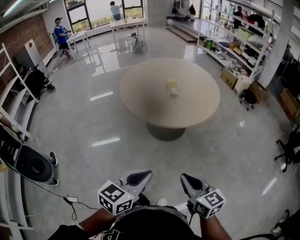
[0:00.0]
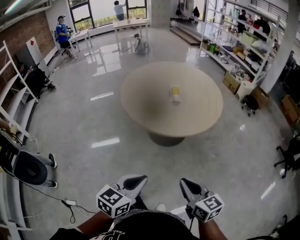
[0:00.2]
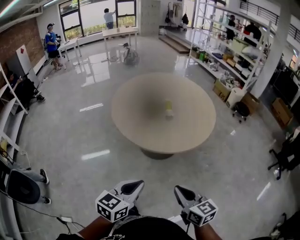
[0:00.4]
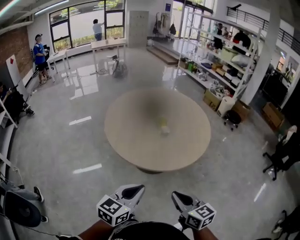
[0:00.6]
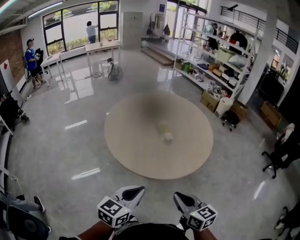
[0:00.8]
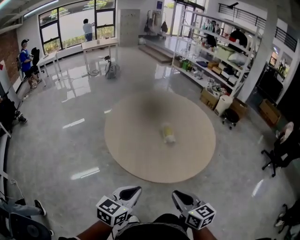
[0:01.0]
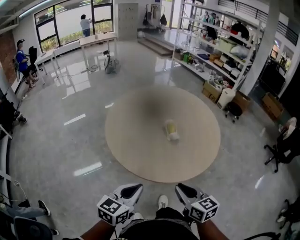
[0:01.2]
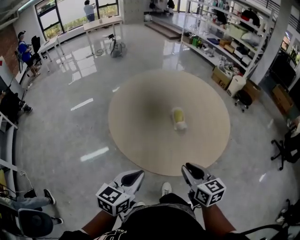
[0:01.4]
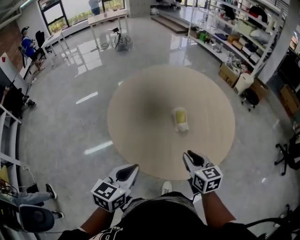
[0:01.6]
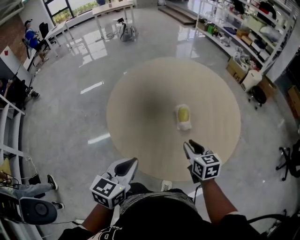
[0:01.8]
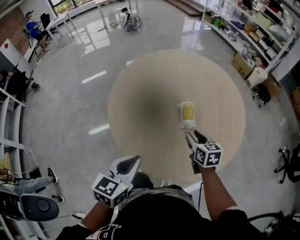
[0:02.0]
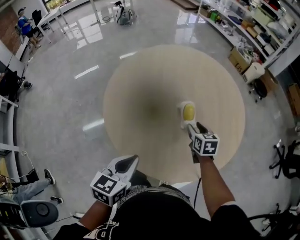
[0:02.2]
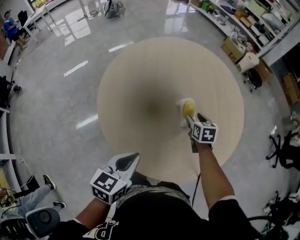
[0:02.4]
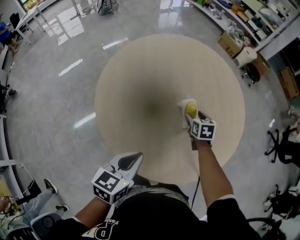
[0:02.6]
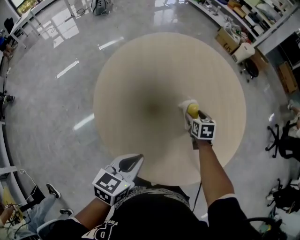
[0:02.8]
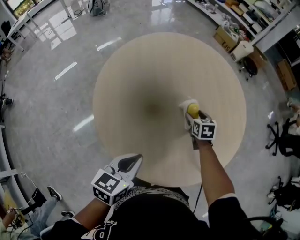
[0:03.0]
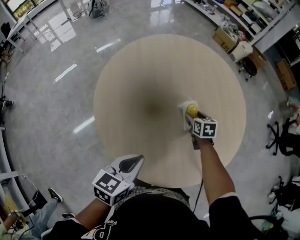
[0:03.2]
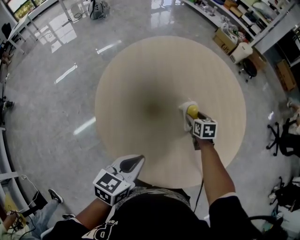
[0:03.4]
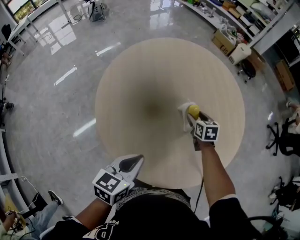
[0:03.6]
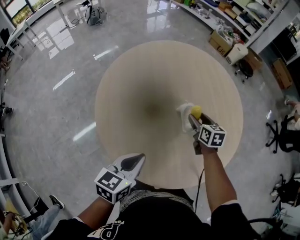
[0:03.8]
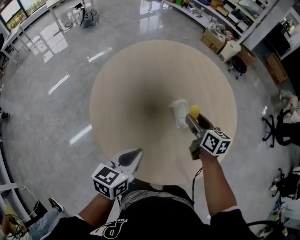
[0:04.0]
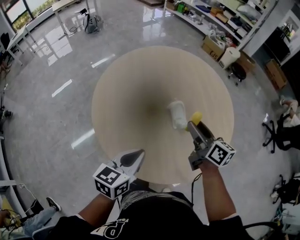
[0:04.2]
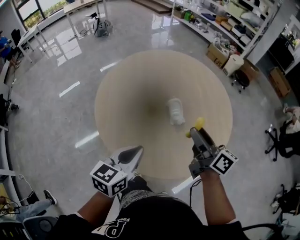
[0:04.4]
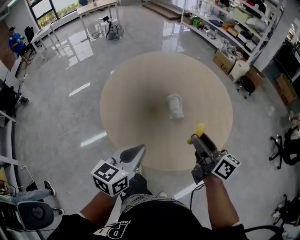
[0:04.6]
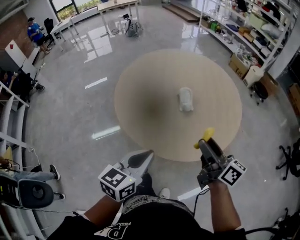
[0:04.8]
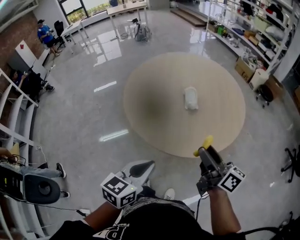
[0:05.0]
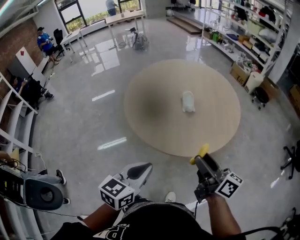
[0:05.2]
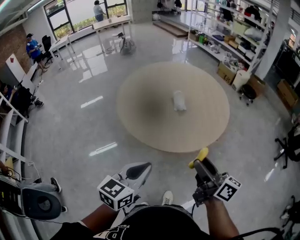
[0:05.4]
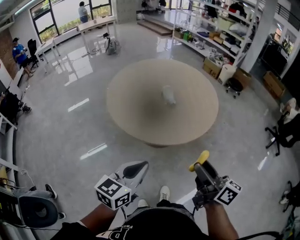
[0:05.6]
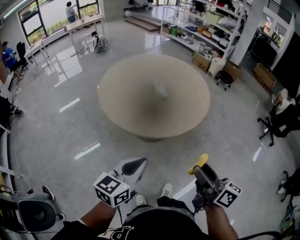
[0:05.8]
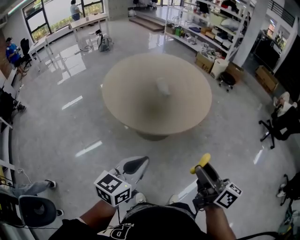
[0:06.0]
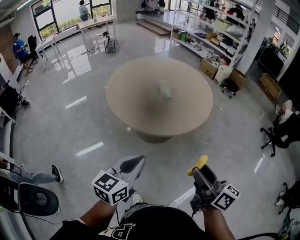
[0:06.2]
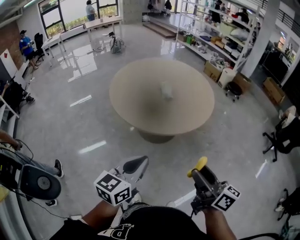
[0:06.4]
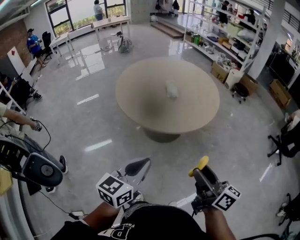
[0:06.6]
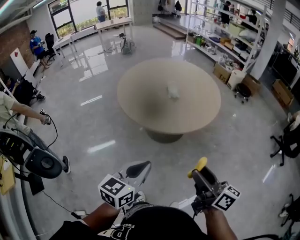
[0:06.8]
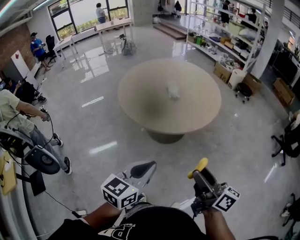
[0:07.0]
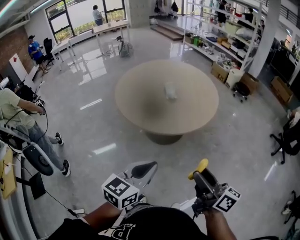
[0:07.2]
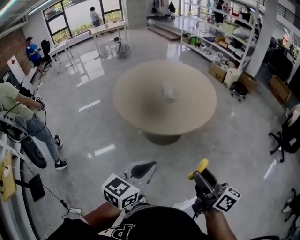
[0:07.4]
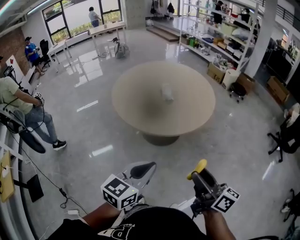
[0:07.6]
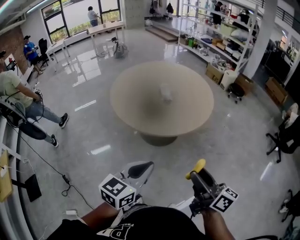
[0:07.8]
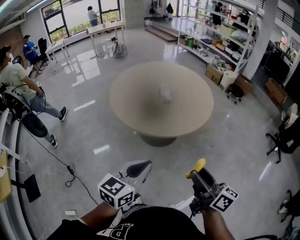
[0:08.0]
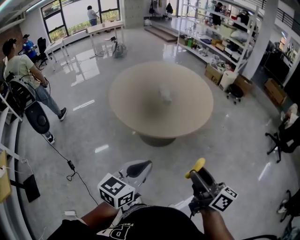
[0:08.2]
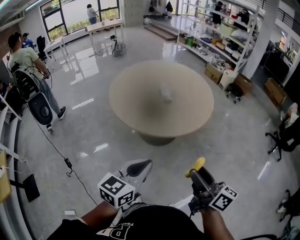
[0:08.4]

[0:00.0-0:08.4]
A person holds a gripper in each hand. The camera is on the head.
0:00.0 to 0:01.4: Both grippers are carried forward and to the left, about 50 cm.
0:01.4 to 0:02.8: The left gripper changes place by roughly 30 cm. The right gripper changes place by roughly 50 cm, changes its angle by about 30 degrees, and opens up.
0:02.8 to 0:04.2: The left gripper ends up approximately 5 cm from where it was; the right gripper shifts approximately 25 cm upward and backward, and tips its fingers upward by approximately 40 degrees.
0:04.2 to 0:05.6: The two grippers travel together, backward, some 50 cm. The right gripper changes its angle by some 20 degrees.
0:05.6 to 0:07.0: Both grippers travel together backward and to the right, some 15 cm.
0:07.0 to 0:08.4: The grippers move only a little.

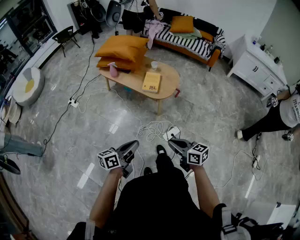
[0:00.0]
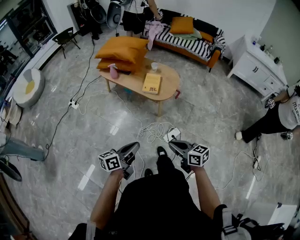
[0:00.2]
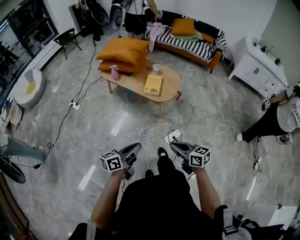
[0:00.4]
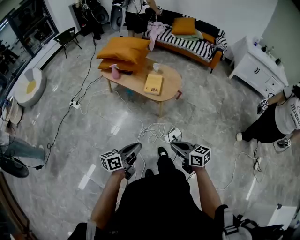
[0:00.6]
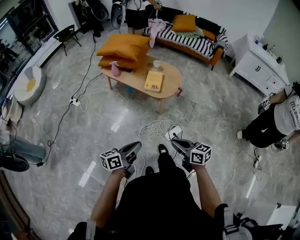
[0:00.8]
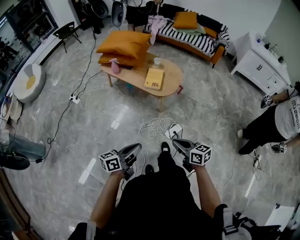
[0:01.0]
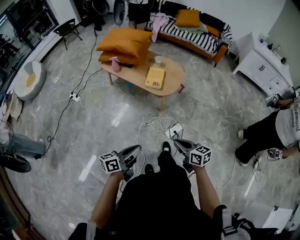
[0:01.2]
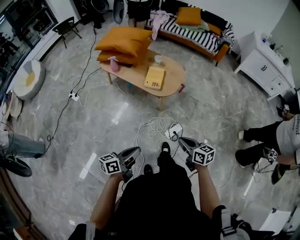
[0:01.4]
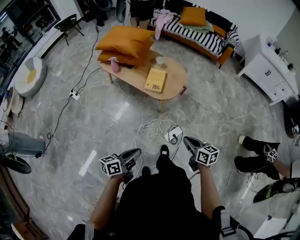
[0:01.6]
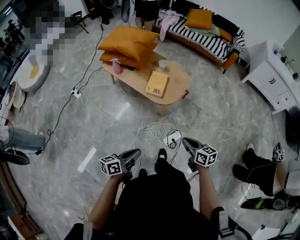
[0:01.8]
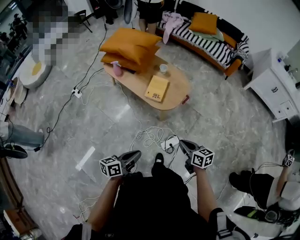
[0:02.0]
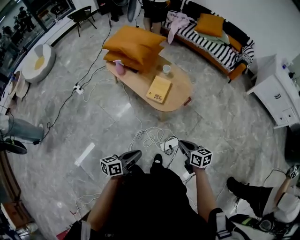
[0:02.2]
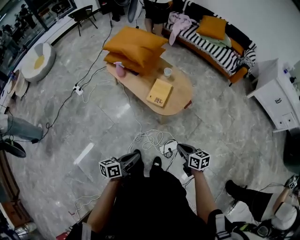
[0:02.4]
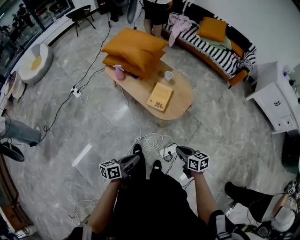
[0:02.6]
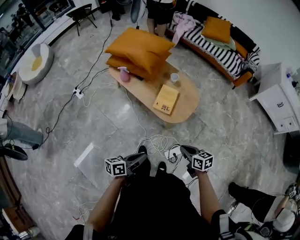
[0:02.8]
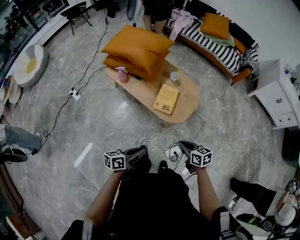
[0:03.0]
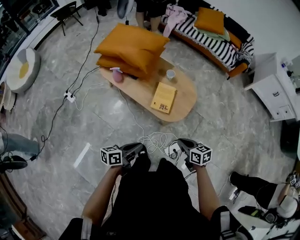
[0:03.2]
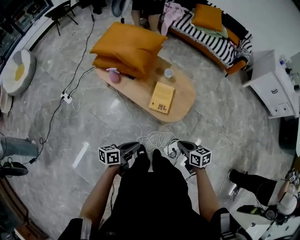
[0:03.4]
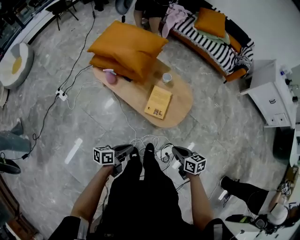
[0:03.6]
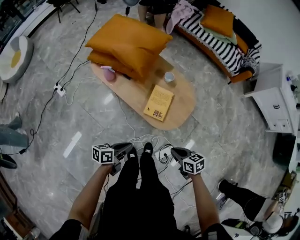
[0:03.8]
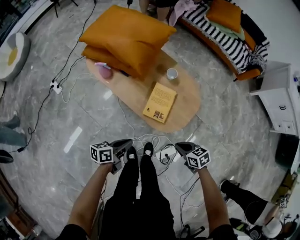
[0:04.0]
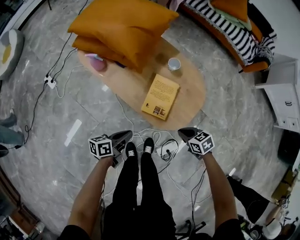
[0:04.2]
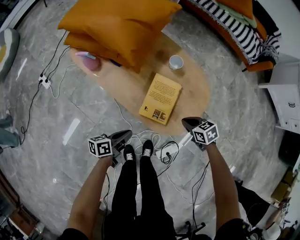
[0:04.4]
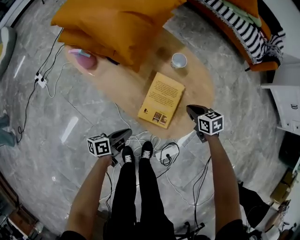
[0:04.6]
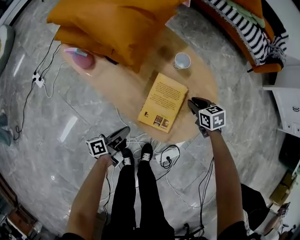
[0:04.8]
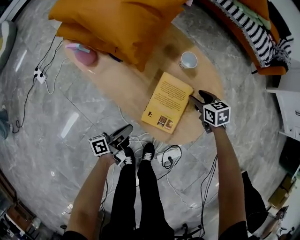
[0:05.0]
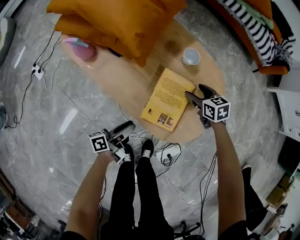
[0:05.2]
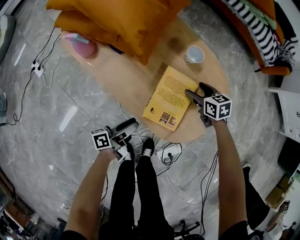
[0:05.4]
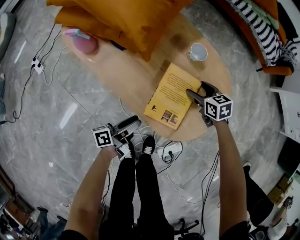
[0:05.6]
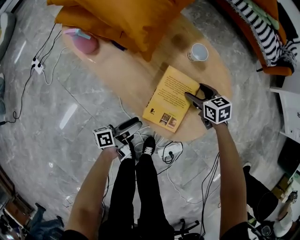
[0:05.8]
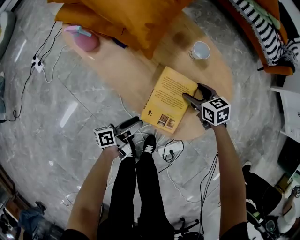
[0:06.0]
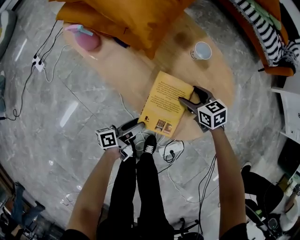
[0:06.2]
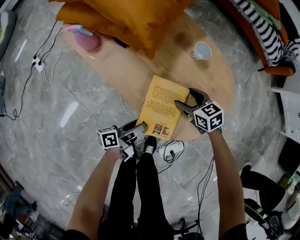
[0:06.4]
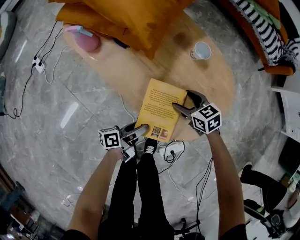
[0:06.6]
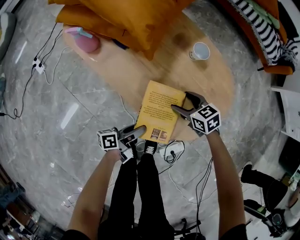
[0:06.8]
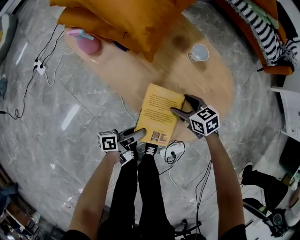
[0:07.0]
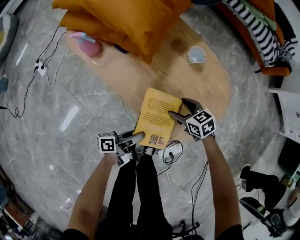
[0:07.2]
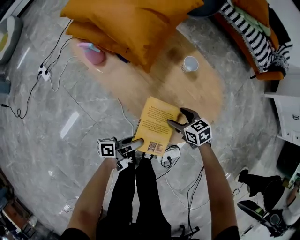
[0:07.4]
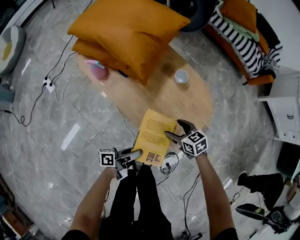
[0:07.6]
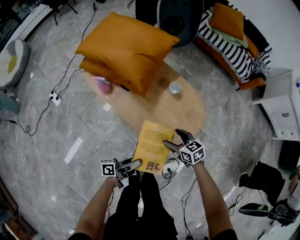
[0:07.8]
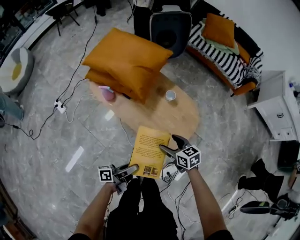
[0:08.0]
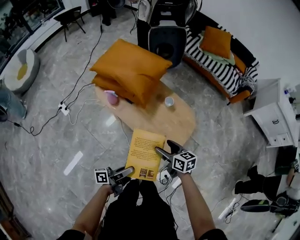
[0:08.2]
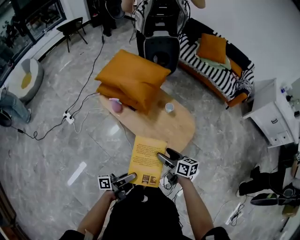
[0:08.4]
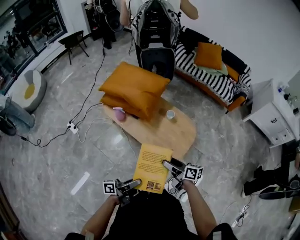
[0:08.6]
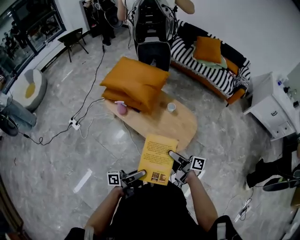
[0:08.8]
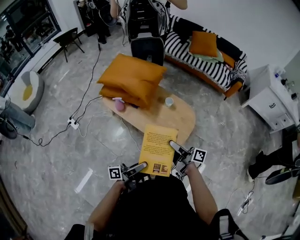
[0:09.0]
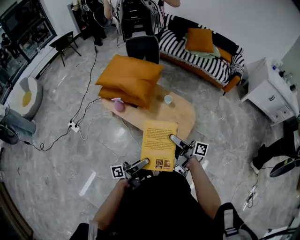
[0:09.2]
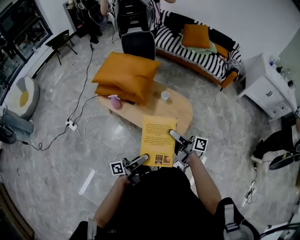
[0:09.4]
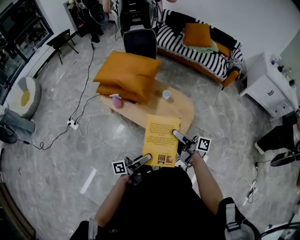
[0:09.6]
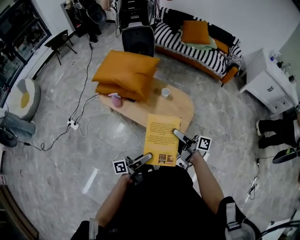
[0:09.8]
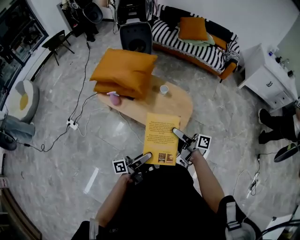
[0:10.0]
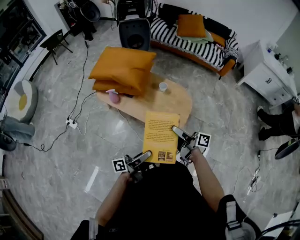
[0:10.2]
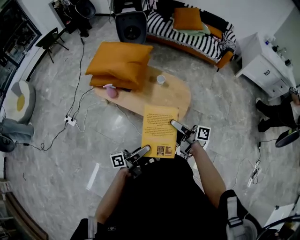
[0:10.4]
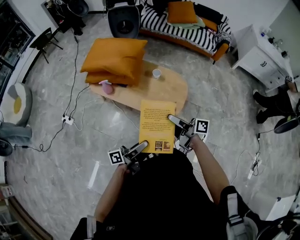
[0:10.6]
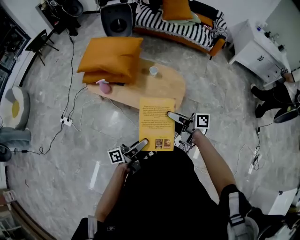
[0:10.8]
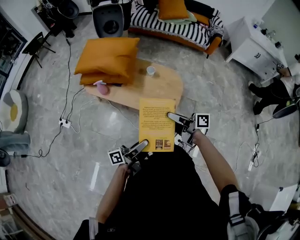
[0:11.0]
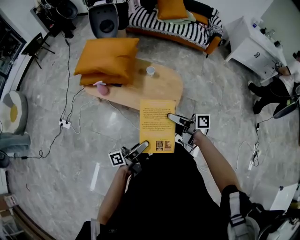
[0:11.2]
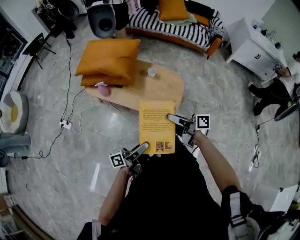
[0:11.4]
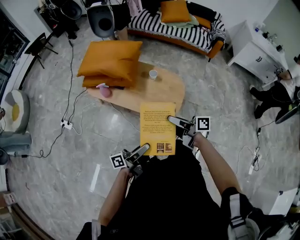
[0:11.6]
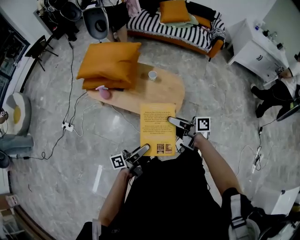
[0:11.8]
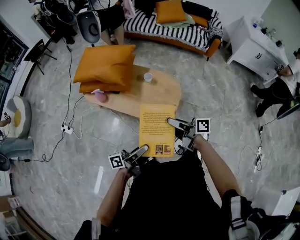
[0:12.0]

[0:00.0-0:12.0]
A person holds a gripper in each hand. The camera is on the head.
0:00.0 to 0:01.6: The right gripper ends up roughly 15 cm from where it was.
0:01.6 to 0:03.0: The right gripper changes place by about 25 cm.
0:03.0 to 0:04.4: The right gripper heads downward, covering roughly 25 cm, and swivels roughly 30 degrees.
0:04.4 to 0:06.0: The right gripper moves approximately 15 cm, and opens up.
0:06.0 to 0:07.6: The right gripper ends up about 15 cm from where it was.
0:07.6 to 0:09.0: The right gripper is displaced upward by approximately 35 cm, tips its fingers upward by some 50 degrees, and closes.

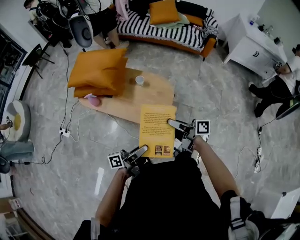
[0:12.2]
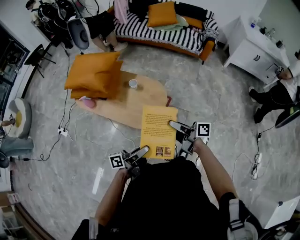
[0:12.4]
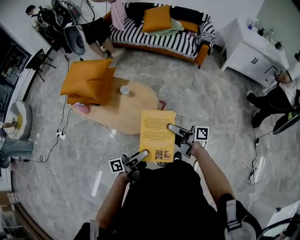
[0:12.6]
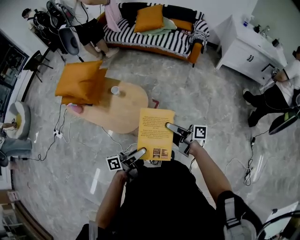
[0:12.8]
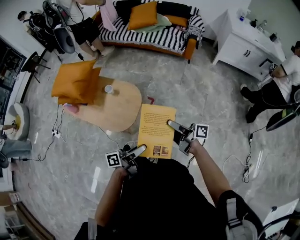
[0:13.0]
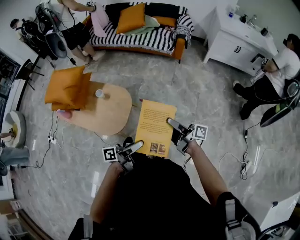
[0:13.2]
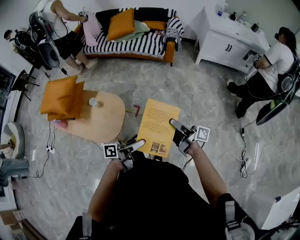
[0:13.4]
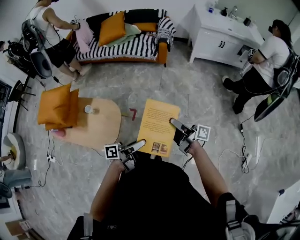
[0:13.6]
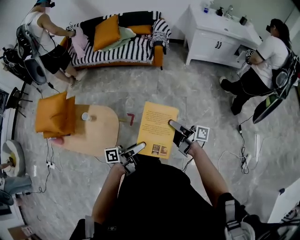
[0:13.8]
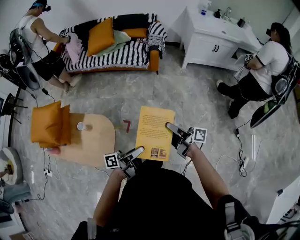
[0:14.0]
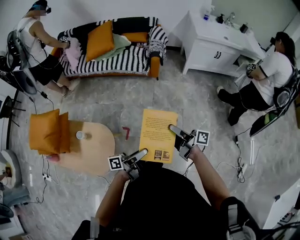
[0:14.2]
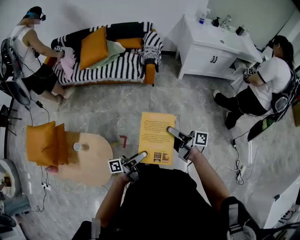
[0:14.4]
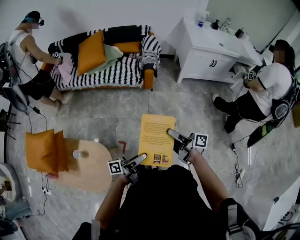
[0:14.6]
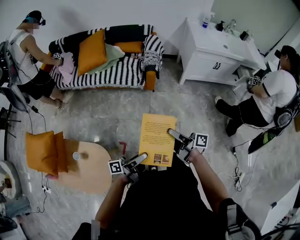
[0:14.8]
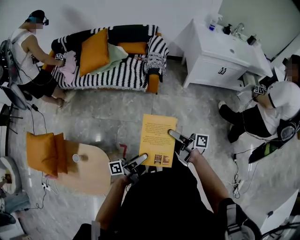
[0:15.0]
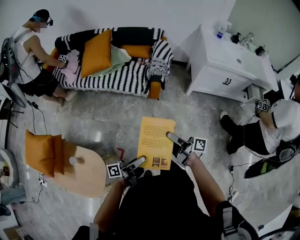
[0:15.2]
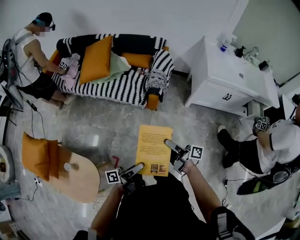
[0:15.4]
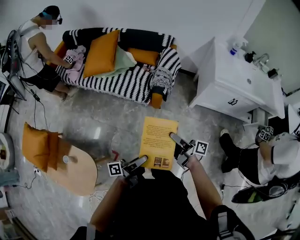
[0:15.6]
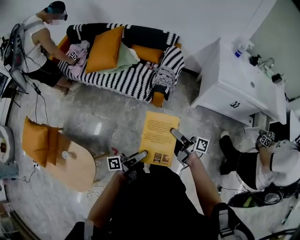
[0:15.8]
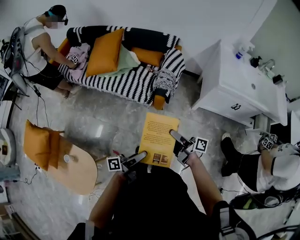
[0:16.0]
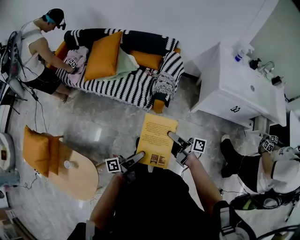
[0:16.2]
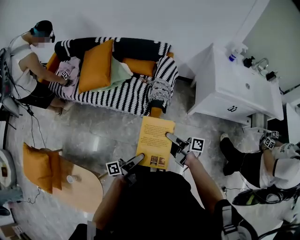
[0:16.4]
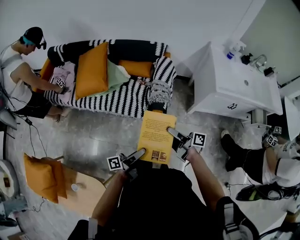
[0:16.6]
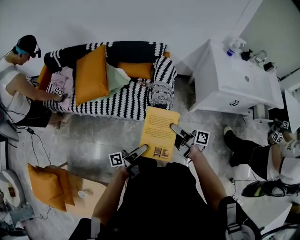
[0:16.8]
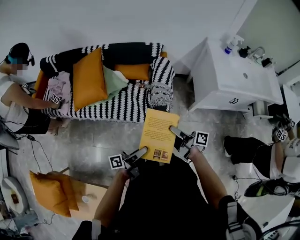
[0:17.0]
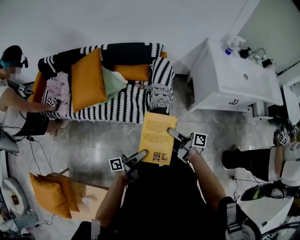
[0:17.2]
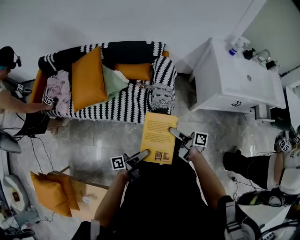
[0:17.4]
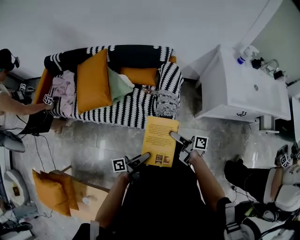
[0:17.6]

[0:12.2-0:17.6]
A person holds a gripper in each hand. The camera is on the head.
0:12.2 to 0:13.6: The right gripper moves about 50 cm, and rotates some 30 degrees.
0:13.6 to 0:15.0: The right gripper changes place by approximately 40 cm.
0:15.0 to 0:16.2: The right gripper shifts by about 30 cm.
0:16.2 to 0:17.6: The right gripper changes place by approximately 25 cm.
